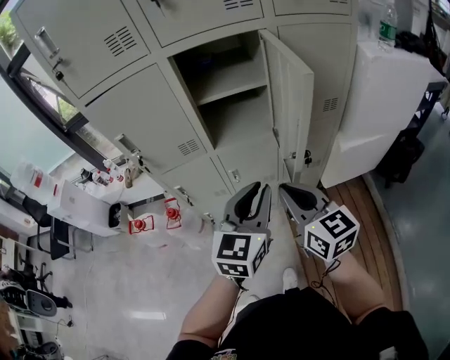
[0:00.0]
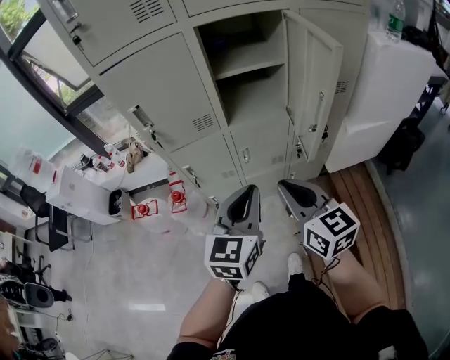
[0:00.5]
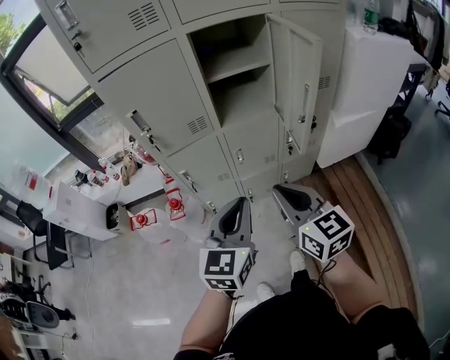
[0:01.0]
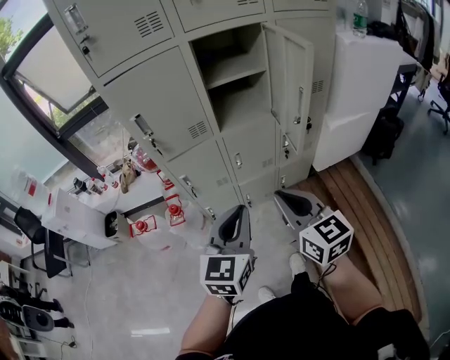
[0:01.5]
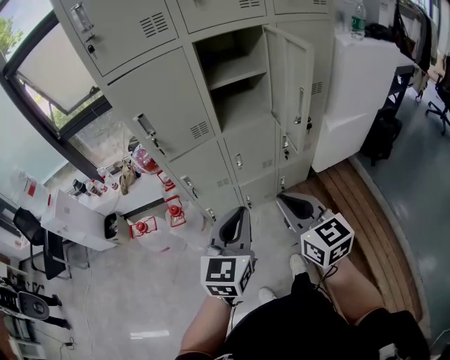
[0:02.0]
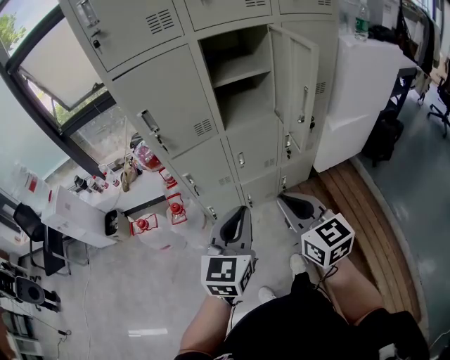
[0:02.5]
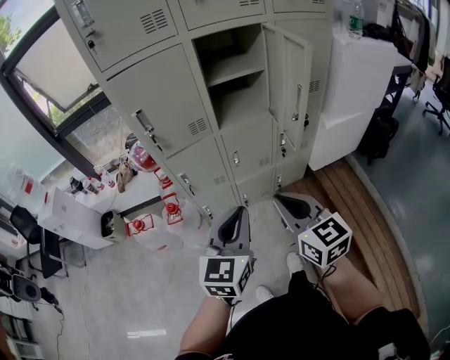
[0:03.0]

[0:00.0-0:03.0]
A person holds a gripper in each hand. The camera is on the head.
0:00.0 to 0:01.5: The left gripper goes some 20 cm to the left and backward; the right gripper is displaced backward and to the left by roughly 15 cm.
0:01.5 to 0:03.0: The grippers make only small movements.

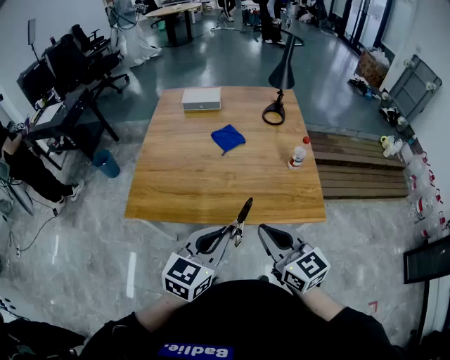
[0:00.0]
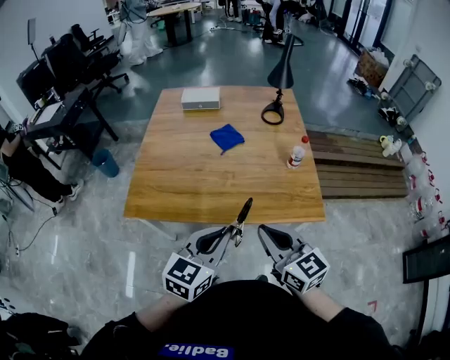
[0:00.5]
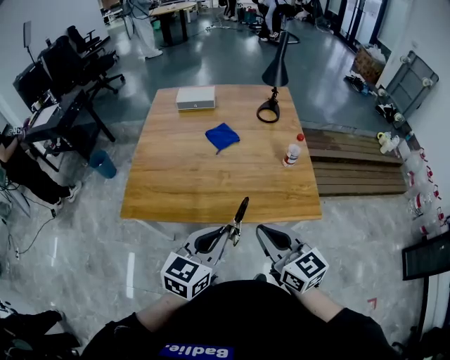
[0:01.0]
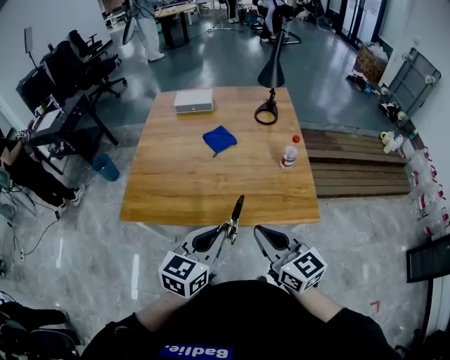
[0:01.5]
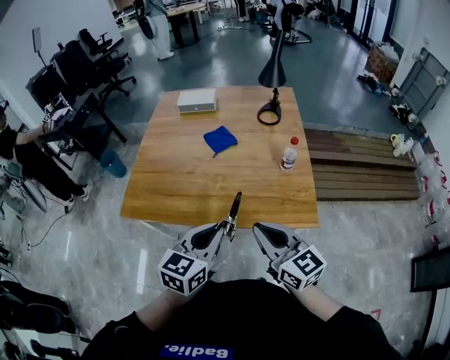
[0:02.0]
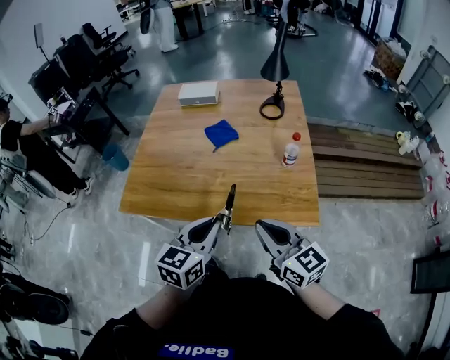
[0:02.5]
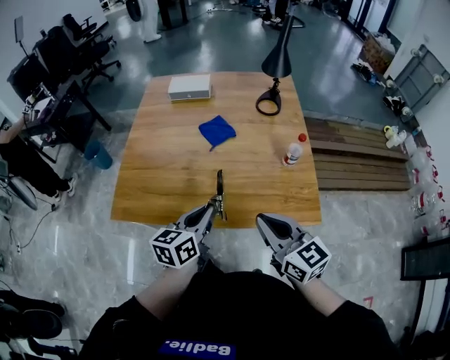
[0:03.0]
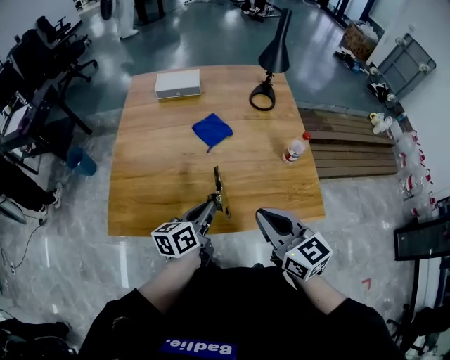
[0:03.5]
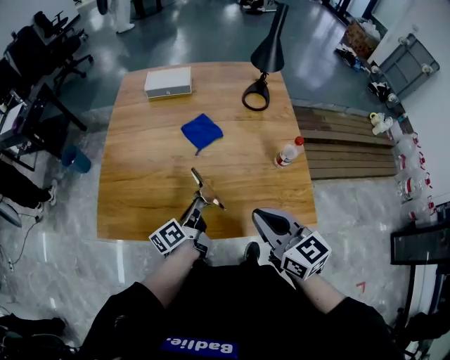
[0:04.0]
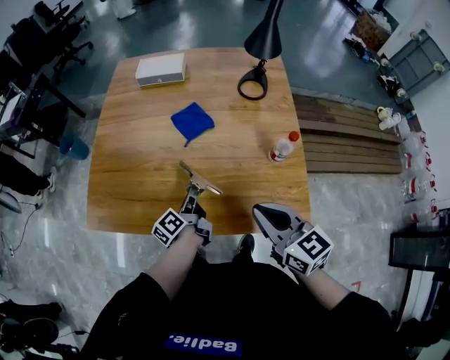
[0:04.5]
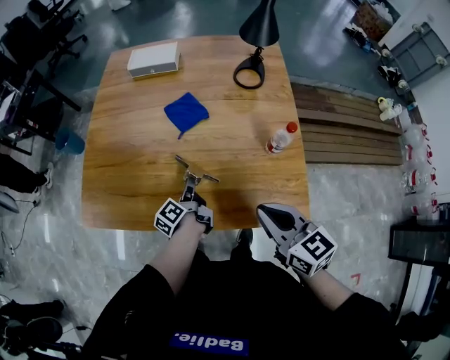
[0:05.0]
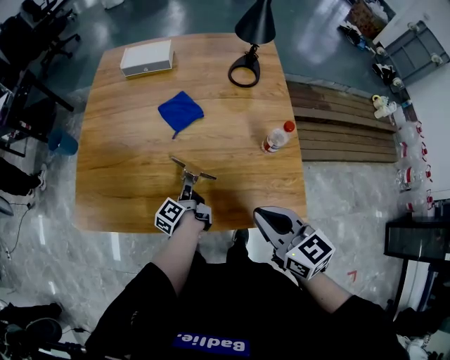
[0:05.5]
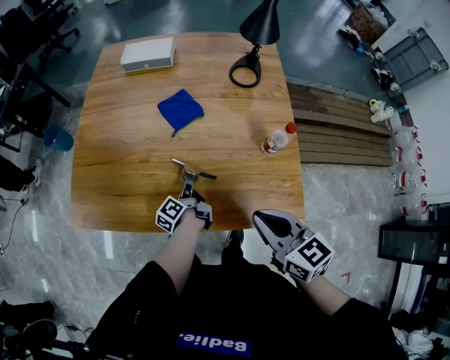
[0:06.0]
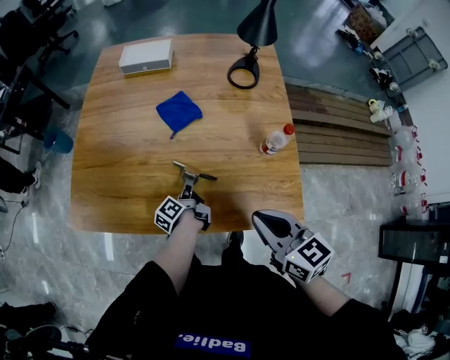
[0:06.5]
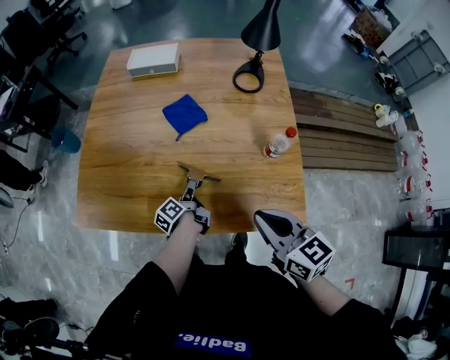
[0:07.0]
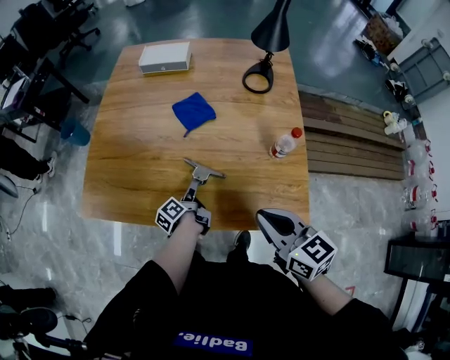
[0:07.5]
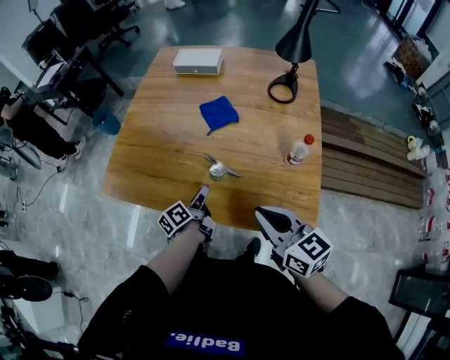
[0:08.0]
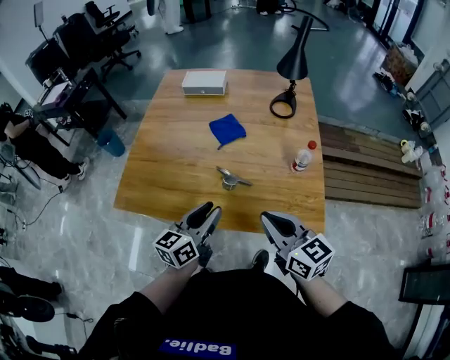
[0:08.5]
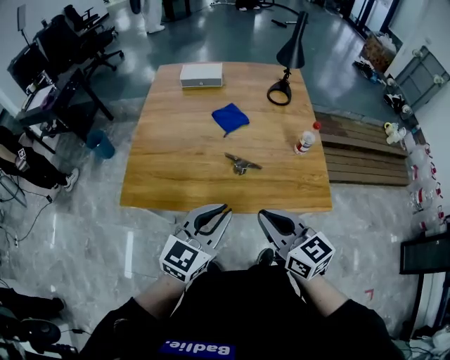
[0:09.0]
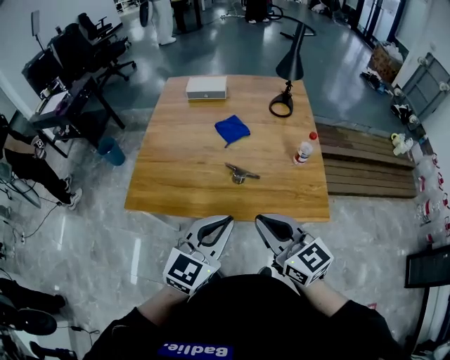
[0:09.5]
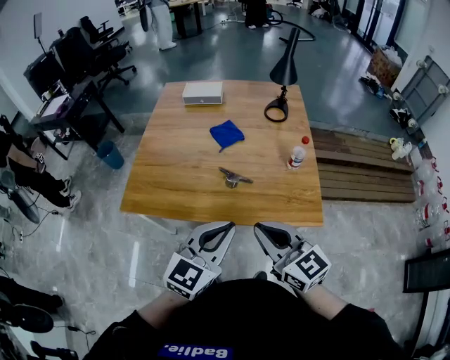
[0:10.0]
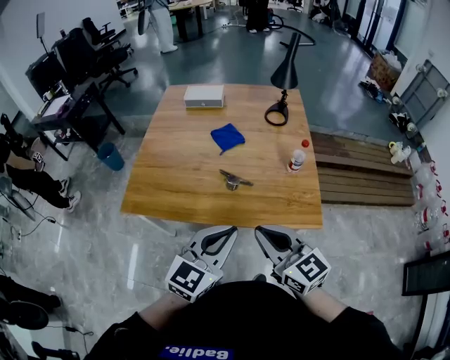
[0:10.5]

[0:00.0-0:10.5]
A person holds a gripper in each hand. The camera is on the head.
0:00.0 to 0:02.0: Both grippers move to the right, roughly 10 cm.
0:02.0 to 0:04.0: The left gripper heads forward and downward, covering about 30 cm, and twists about 60 degrees counterclockwise, seen from behind. Meanwhile the right gripper heads forward, covering about 15 cm.
0:04.0 to 0:06.5: The left gripper shifts some 15 cm downward and to the right, and turns by some 30 degrees; the right gripper shifts approximately 10 cm to the right and downward.
0:06.5 to 0:08.5: The right gripper moves to the left and upward, some 5 cm, while the left gripper is displaced upward and backward by roughly 30 cm, twists some 60 degrees clockwise, seen from behind, and opens up.
0:08.5 to 0:10.5: The left gripper travels backward and upward by some 15 cm, swivels about 30 degrees, and closes its fingers, while the right gripper is displaced backward by some 10 cm.

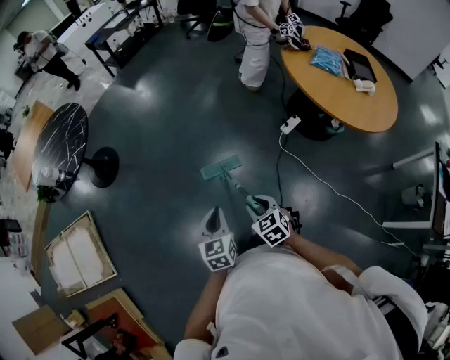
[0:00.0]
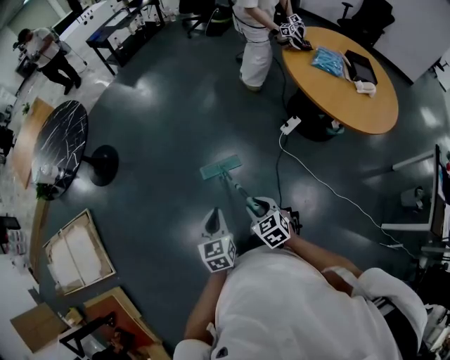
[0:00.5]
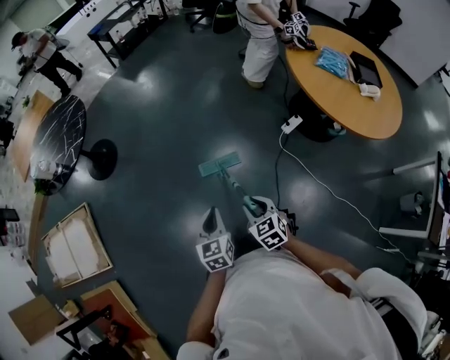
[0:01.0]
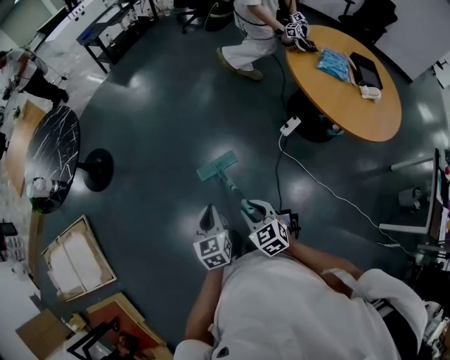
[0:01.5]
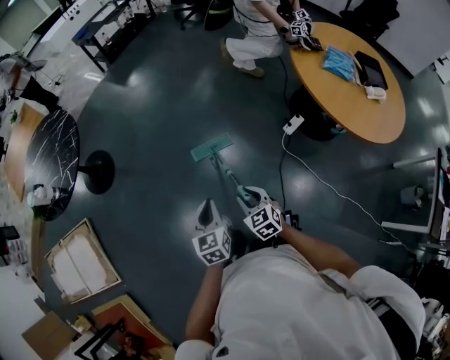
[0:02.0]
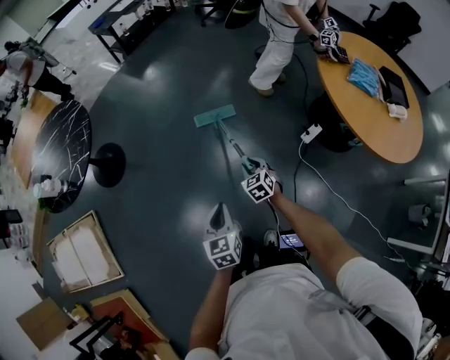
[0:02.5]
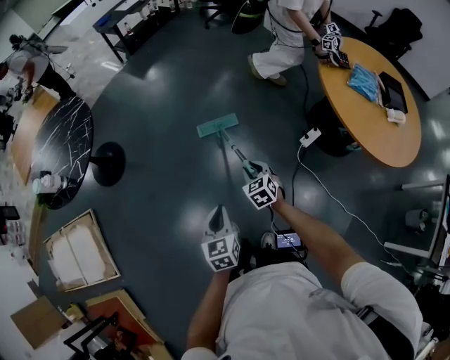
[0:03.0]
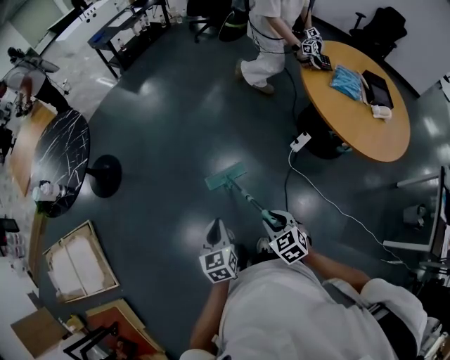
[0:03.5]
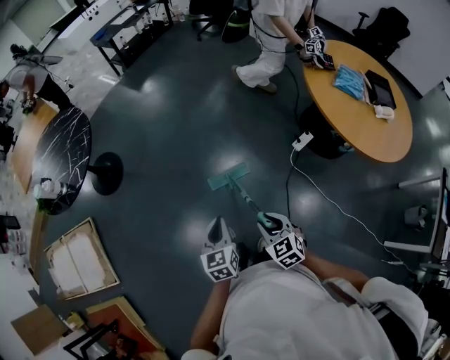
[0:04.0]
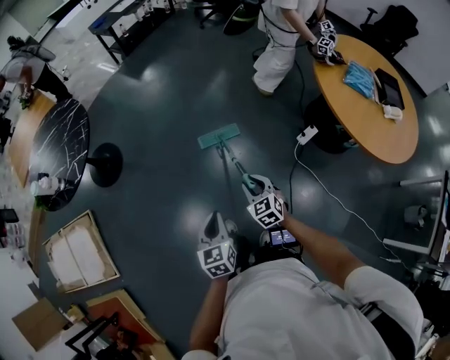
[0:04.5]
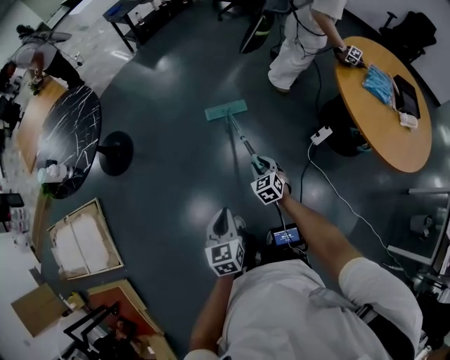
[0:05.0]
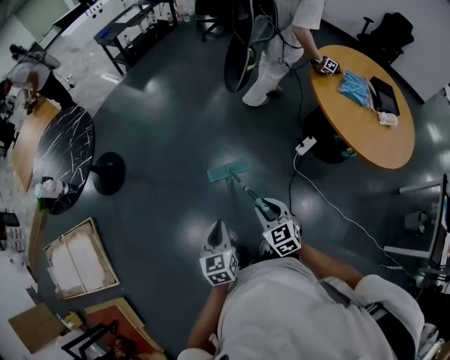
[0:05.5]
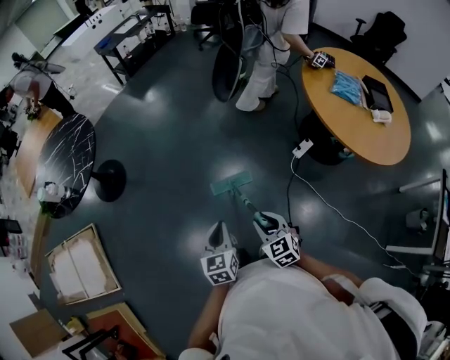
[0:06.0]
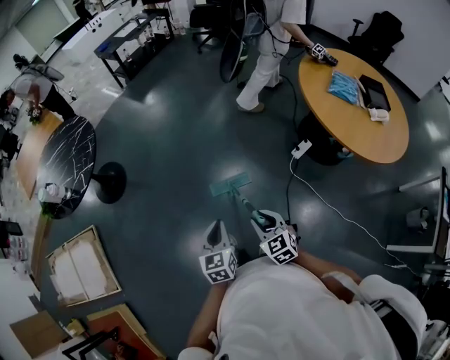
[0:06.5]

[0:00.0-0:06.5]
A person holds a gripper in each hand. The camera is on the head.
0:00.0 to 0:02.0: Both grippers travel together forward, some 15 cm.
0:02.0 to 0:04.5: The right gripper swings forward and backward, some 25 cm each way, with 2 reversals.
0:04.5 to 0:06.5: The left gripper changes place by roughly 5 cm; the right gripper travels backward and upward by some 15 cm.

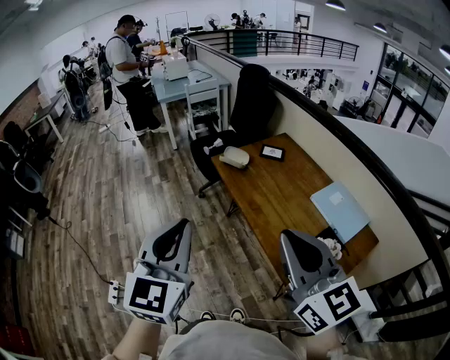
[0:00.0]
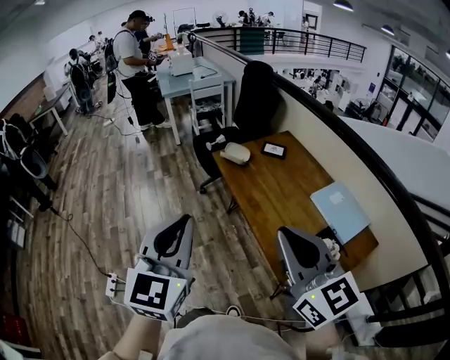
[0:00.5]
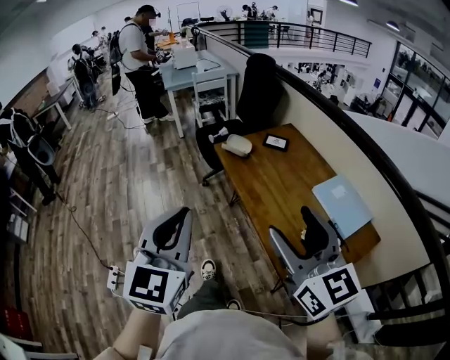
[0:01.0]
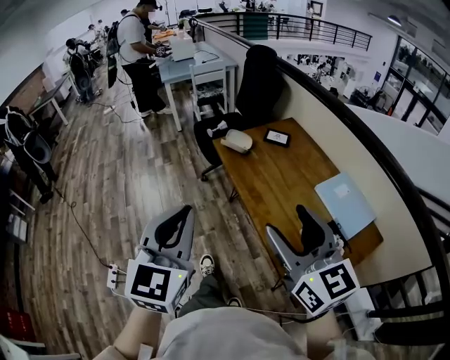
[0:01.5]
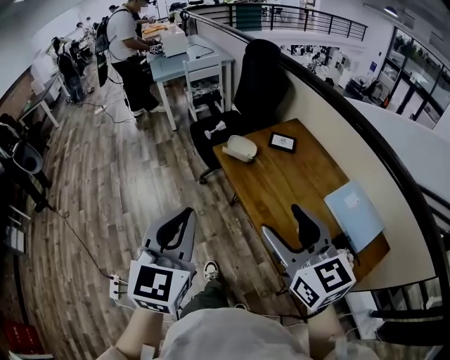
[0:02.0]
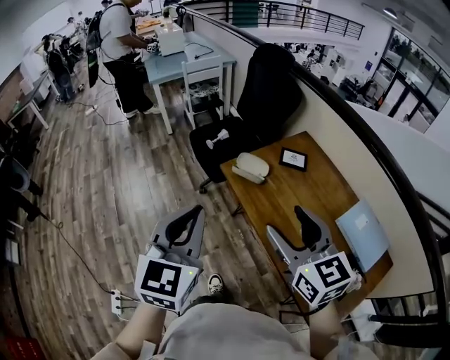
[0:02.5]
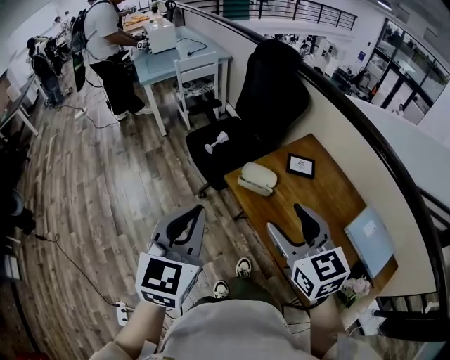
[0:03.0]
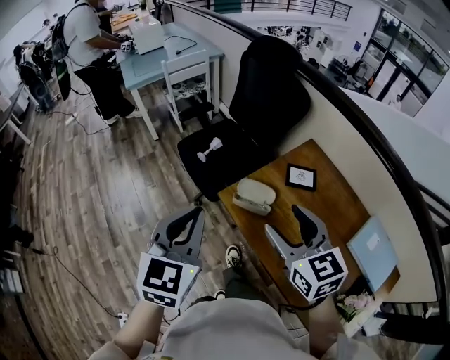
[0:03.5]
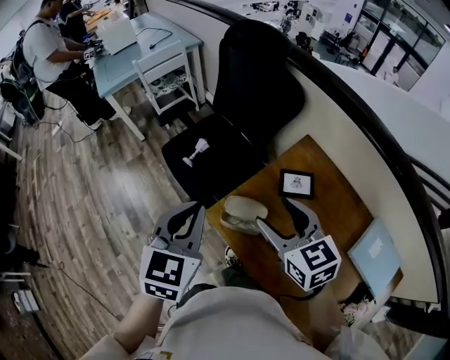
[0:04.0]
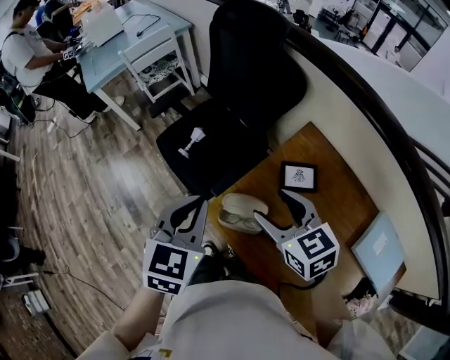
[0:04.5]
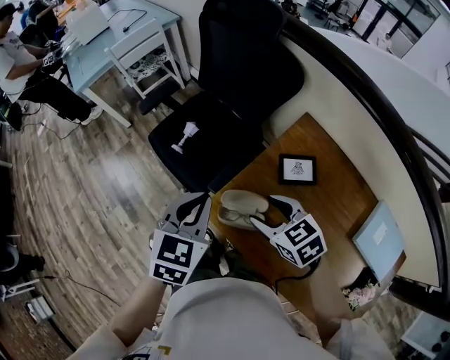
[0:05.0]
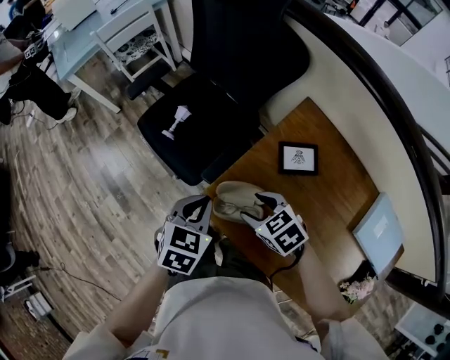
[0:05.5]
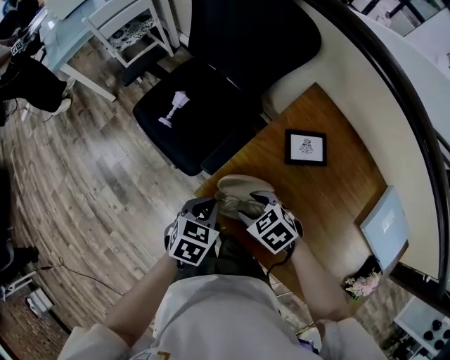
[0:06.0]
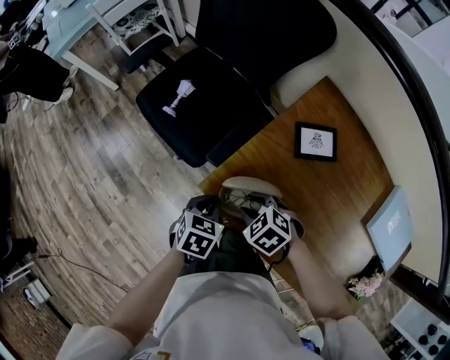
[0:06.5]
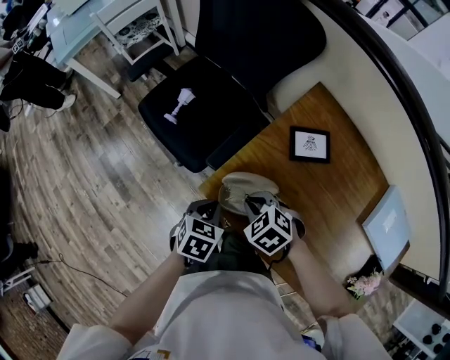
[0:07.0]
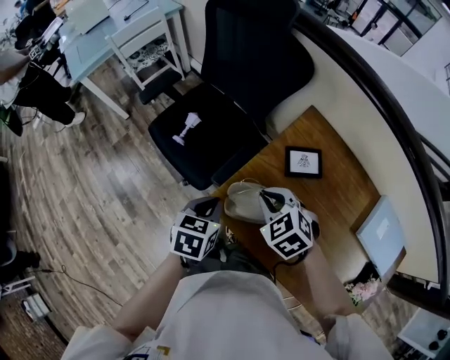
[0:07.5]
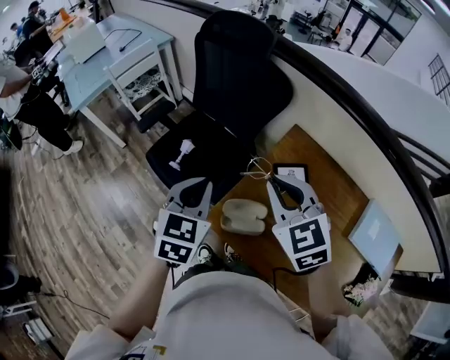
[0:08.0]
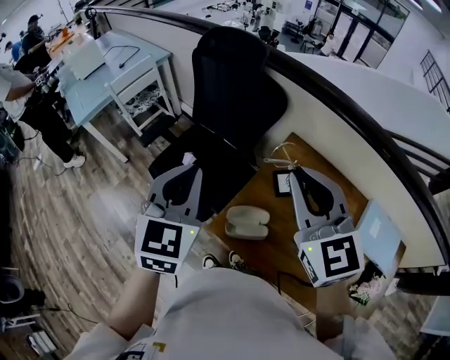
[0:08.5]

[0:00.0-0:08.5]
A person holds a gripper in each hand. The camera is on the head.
0:00.0 to 0:02.0: Both grippers travel together forward and downward, about 20 cm. The right gripper opens up.
0:02.0 to 0:04.0: The two grippers travel together, forward, roughly 50 cm. The left gripper turns by approximately 20 degrees.
0:04.0 to 0:06.5: The grippers both shift downward by roughly 35 cm. The right gripper tilts its fingers approximately 40 degrees downward, and closes its fingers, while the left gripper tilts its fingers approximately 30 degrees downward.
0:06.5 to 0:08.5: Both grippers move upward, roughly 40 cm. The left gripper angles its fingers upward, by roughly 40 degrees, while the right gripper angles its fingers upward, by about 60 degrees, and closes its fingers.
